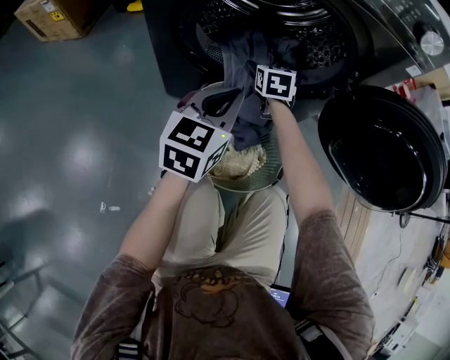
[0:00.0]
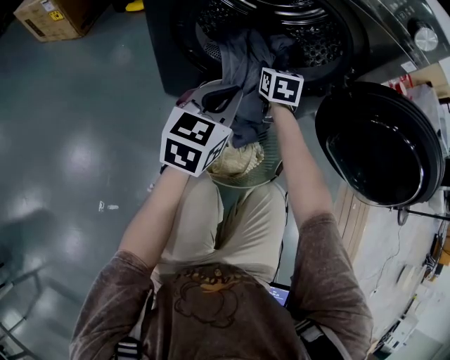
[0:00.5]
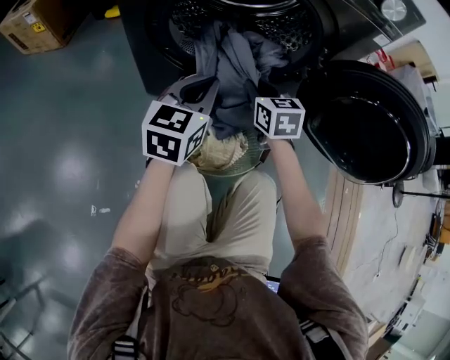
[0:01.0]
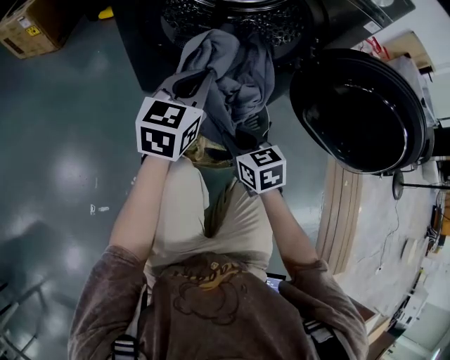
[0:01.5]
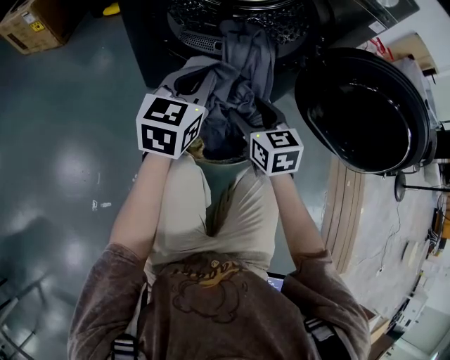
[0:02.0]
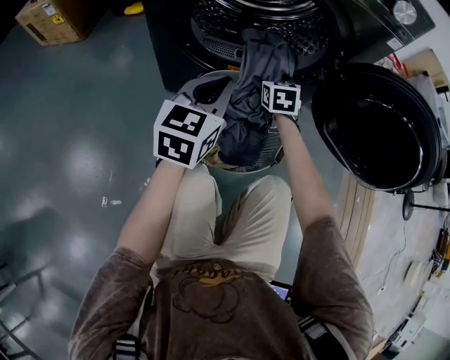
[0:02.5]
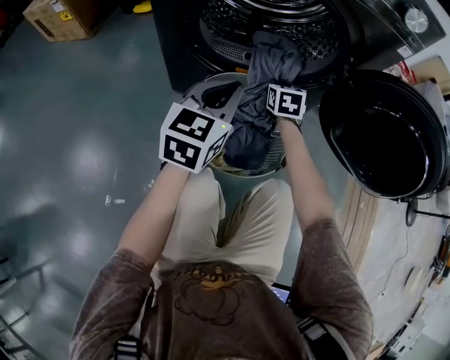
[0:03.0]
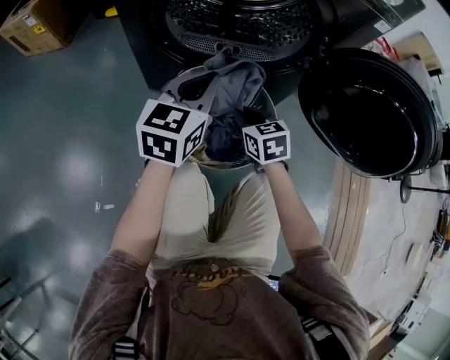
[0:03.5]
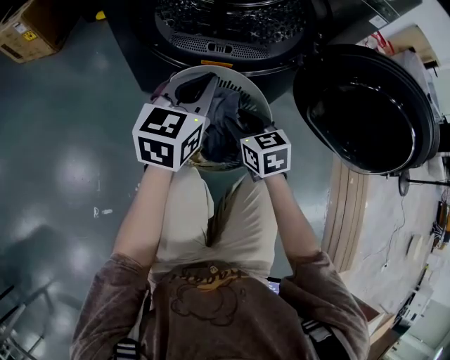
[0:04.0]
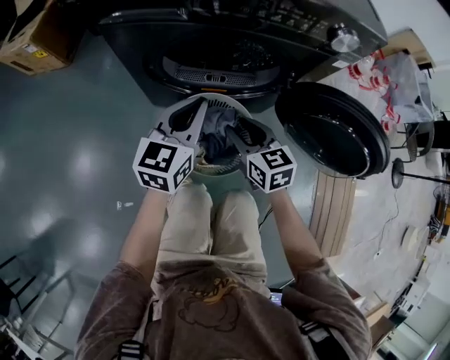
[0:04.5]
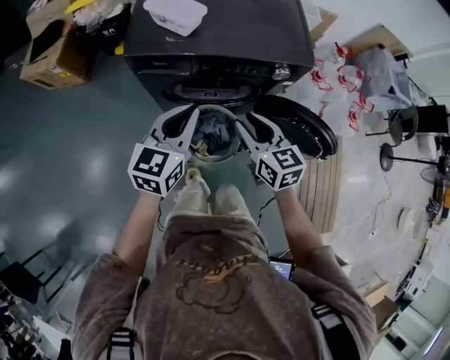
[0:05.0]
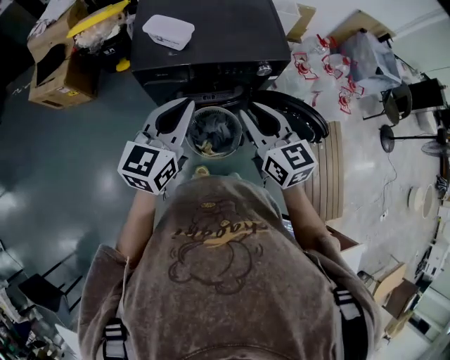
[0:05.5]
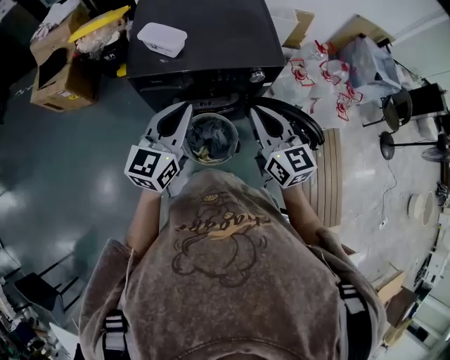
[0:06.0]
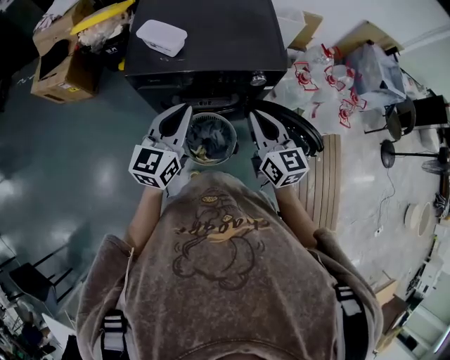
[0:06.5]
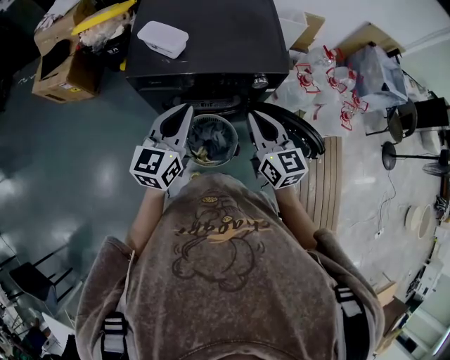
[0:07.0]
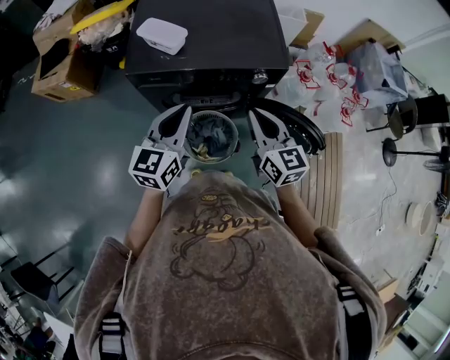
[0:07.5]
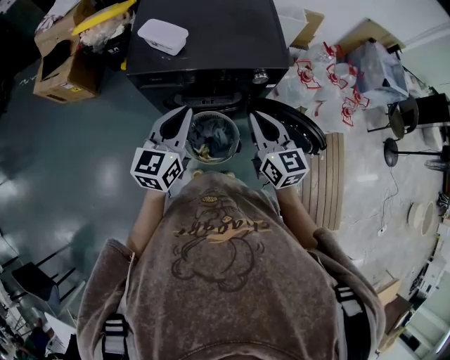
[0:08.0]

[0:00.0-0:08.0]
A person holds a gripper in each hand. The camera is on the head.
0:00.0 to 0:02.0: The right gripper shifts about 25 cm backward, and closes, then reopens.
0:02.0 to 0:04.0: The right gripper travels downward by approximately 5 cm, and travels forward and back again, approximately 15 cm each way.
0:04.0 to 0:06.0: The two grippers go roughly 60 cm upward. The right gripper turns by approximately 30 degrees, and closes up.
0:06.0 to 0:08.0: The right gripper travels downward by approximately 5 cm.

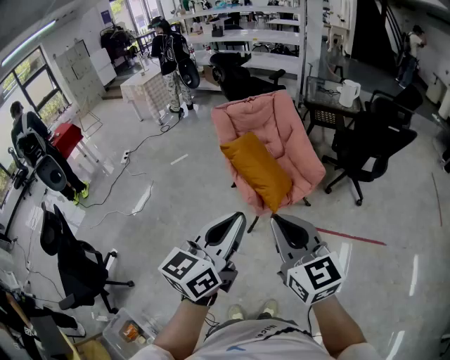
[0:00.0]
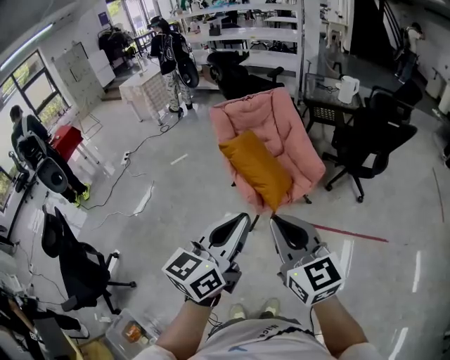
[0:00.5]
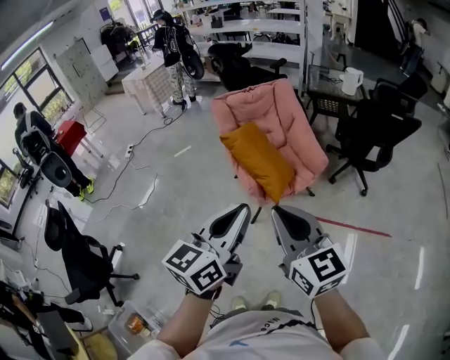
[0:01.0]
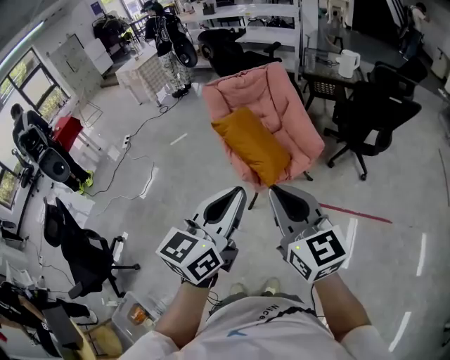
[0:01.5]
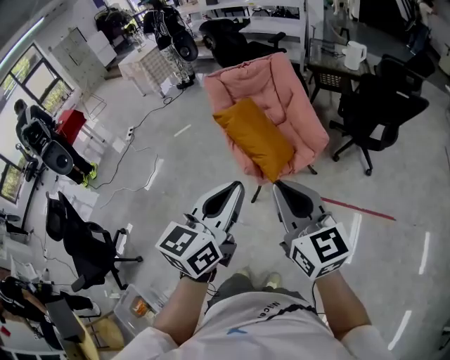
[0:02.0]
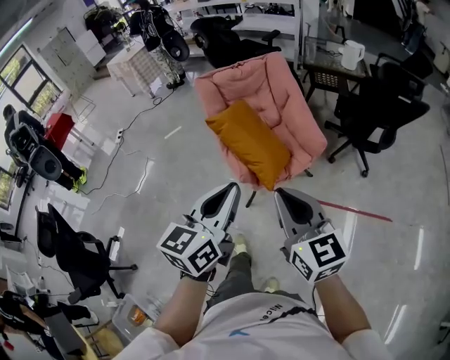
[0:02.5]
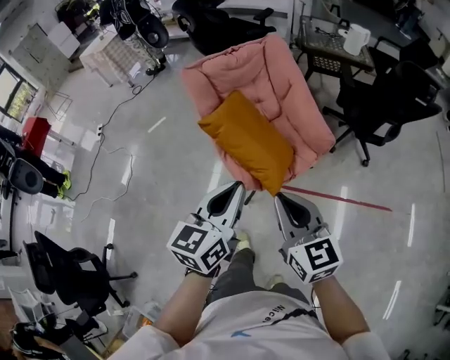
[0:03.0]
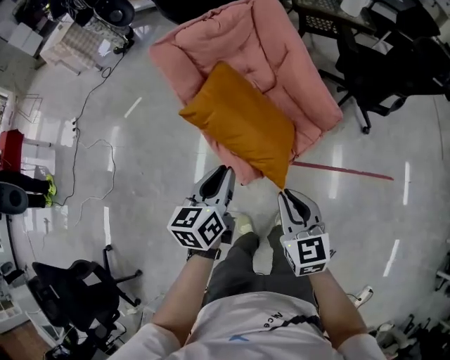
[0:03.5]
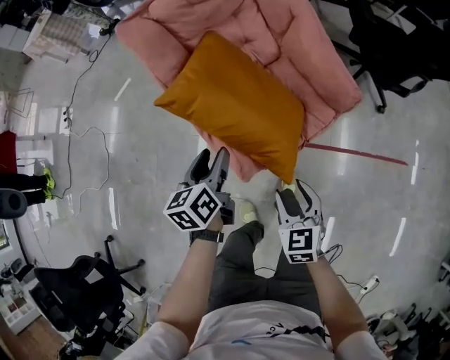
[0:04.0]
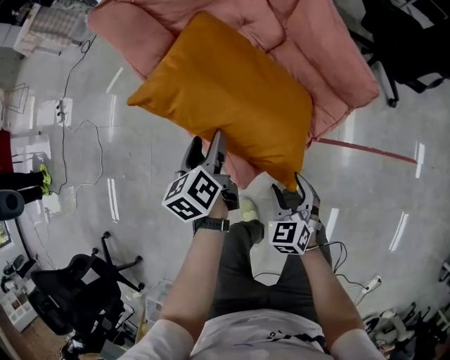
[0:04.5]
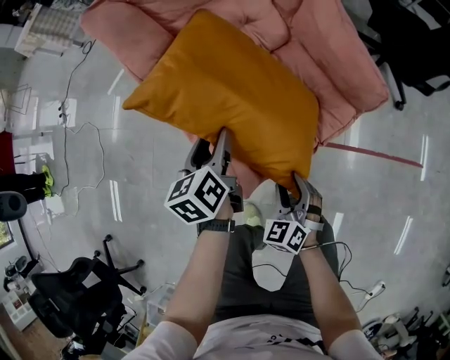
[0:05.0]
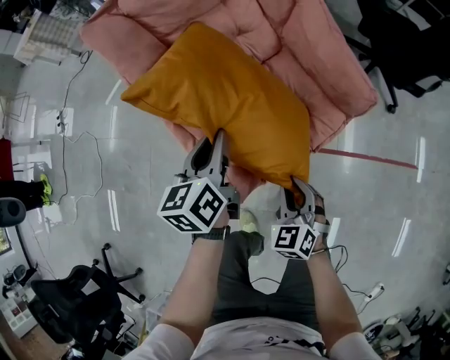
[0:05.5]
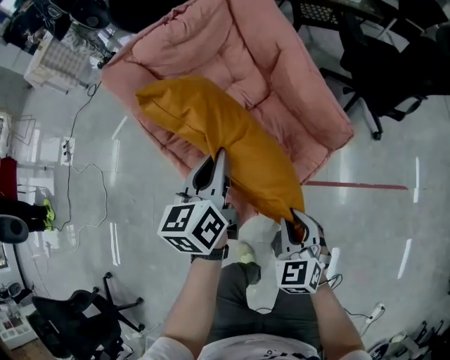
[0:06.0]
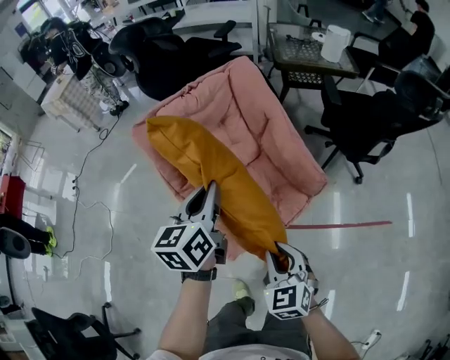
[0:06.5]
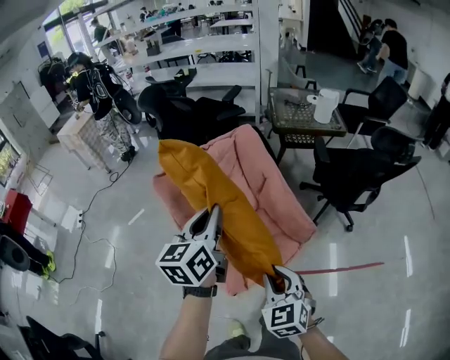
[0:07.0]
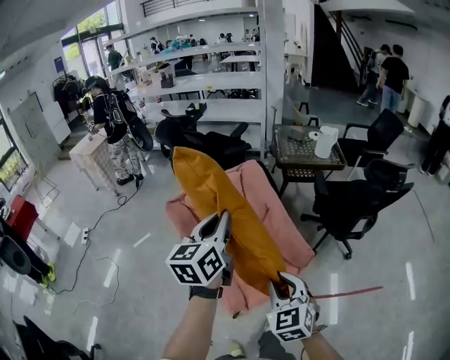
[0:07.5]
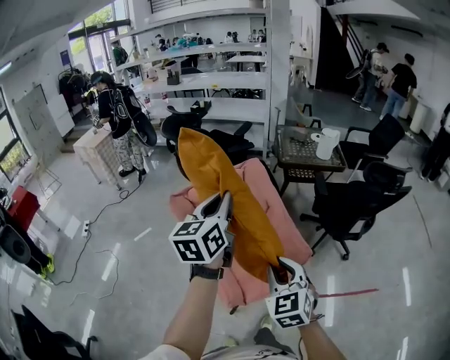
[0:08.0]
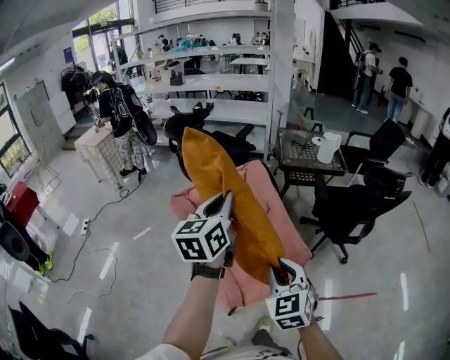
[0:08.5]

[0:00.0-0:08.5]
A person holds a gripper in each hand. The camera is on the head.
0:00.0 to 0:02.0: Both grippers move to the right, approximately 10 cm.
0:02.0 to 0:04.0: The two grippers go some 60 cm downward and forward. The left gripper swivels about 40 degrees, and opens. Meanwhile the right gripper tips its fingers downward by approximately 40 degrees, and opens.
0:04.0 to 0:06.5: The left gripper travels upward and forward by approximately 25 cm, rotates approximately 20 degrees, and closes its fingers. The right gripper moves upward, approximately 15 cm, and closes.
0:06.5 to 0:08.5: The two grippers go approximately 30 cm upward.

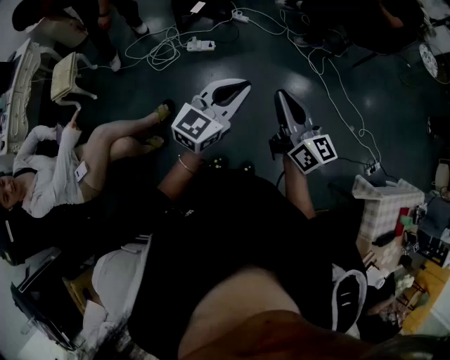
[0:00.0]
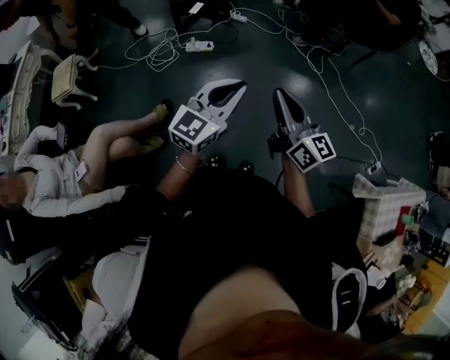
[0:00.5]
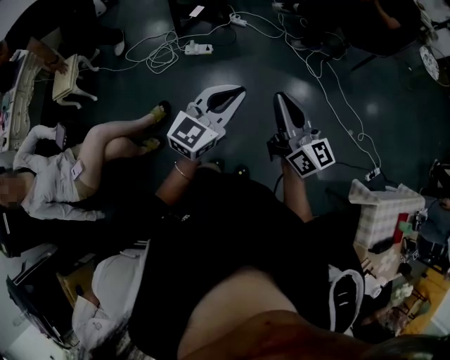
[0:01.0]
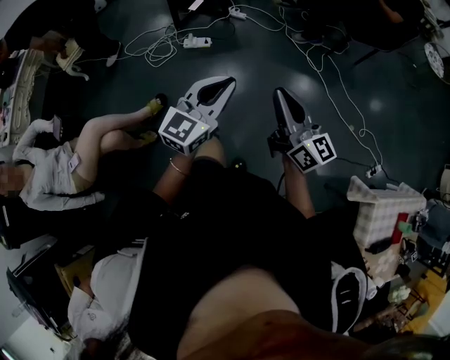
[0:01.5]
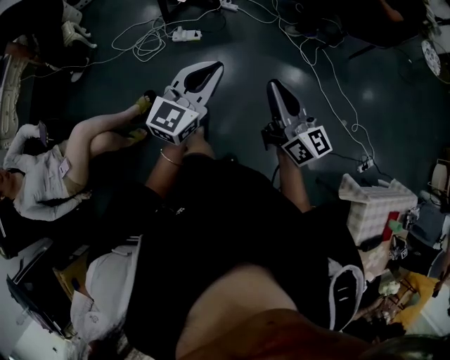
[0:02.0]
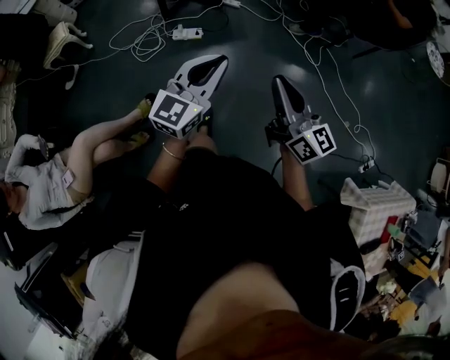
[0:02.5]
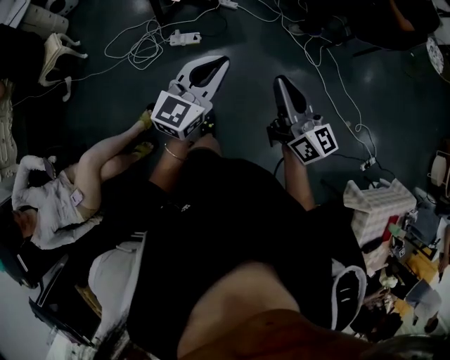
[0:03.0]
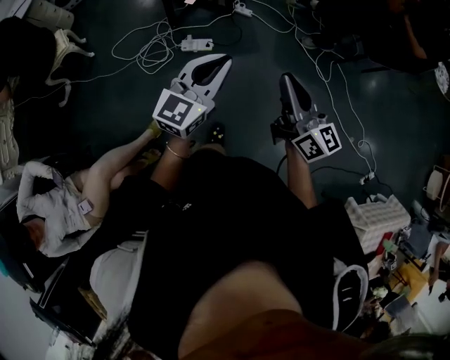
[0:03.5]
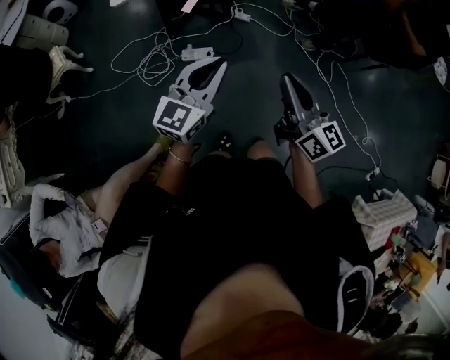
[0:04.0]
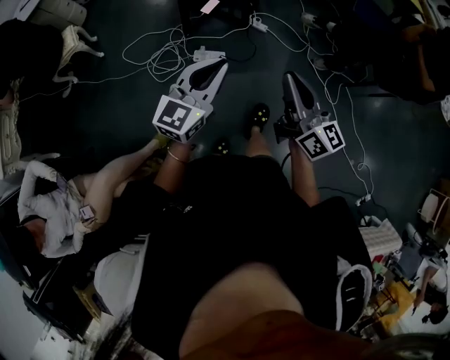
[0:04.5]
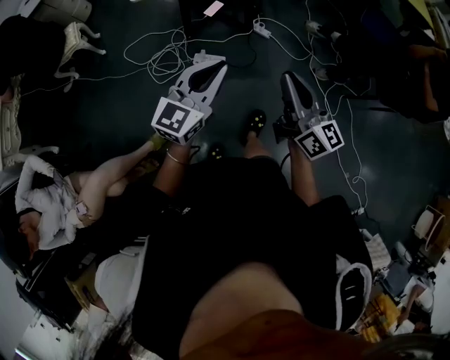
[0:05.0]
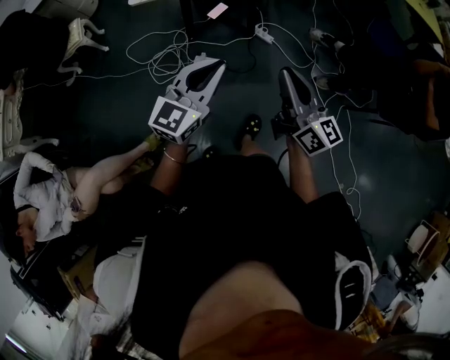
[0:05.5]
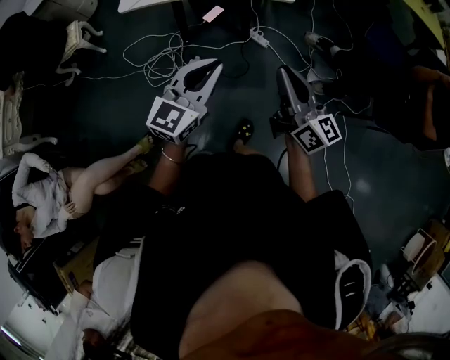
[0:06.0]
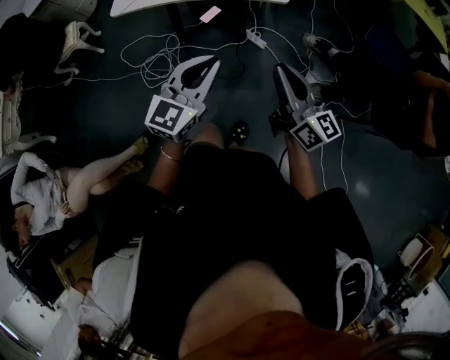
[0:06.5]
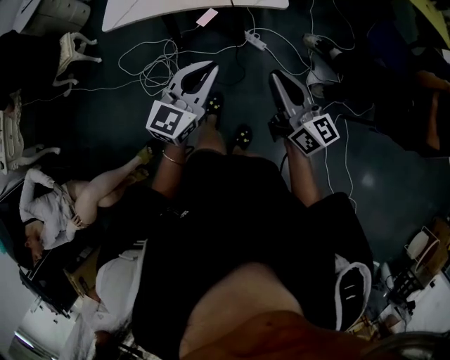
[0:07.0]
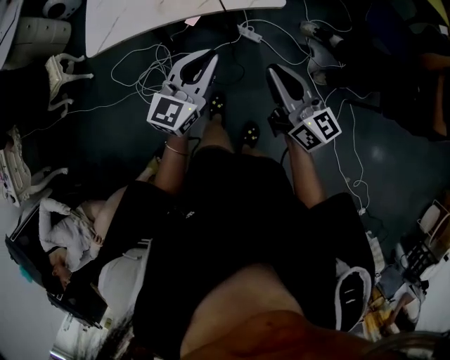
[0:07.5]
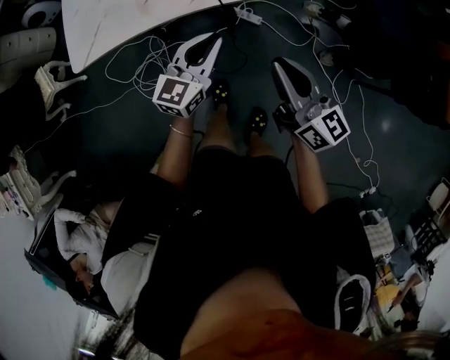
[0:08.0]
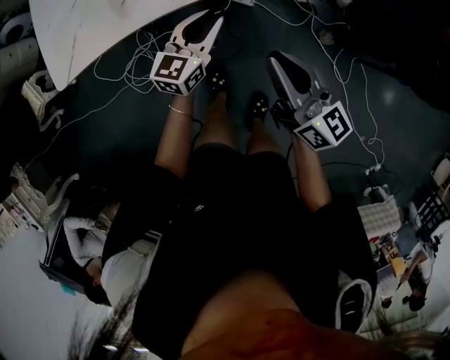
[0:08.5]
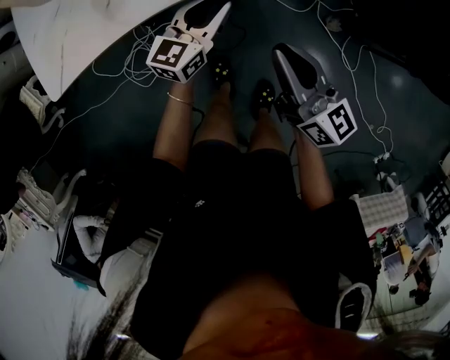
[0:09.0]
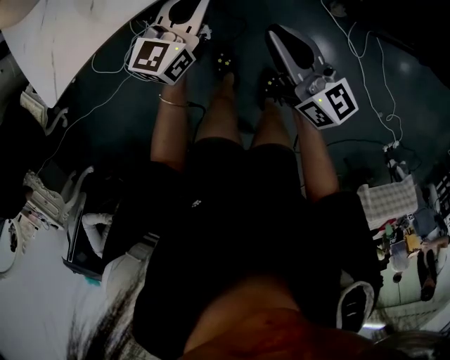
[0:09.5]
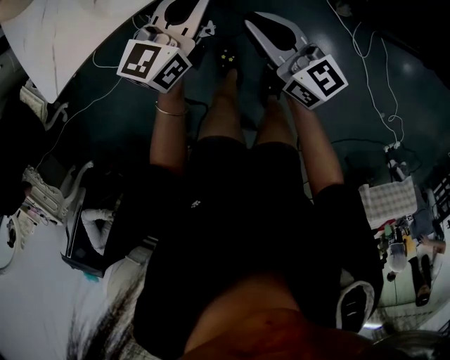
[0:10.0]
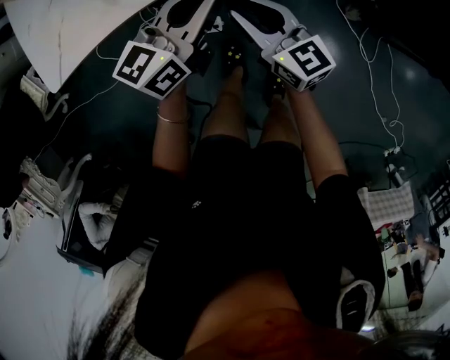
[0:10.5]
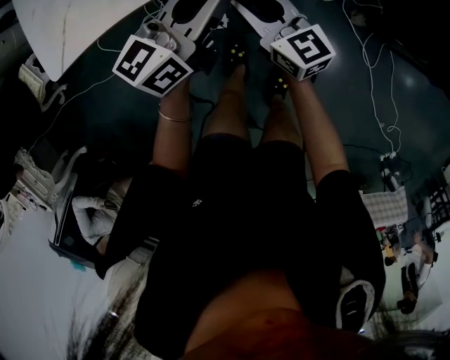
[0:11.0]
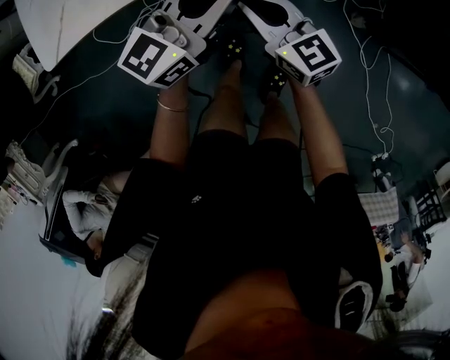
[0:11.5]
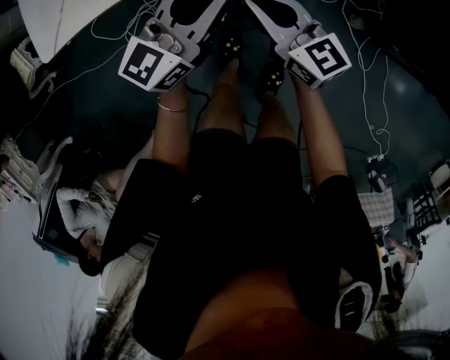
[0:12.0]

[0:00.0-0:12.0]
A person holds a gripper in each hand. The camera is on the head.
0:00.0 to 0:02.0: The left gripper is displaced forward by some 5 cm, while the right gripper is displaced to the right by about 10 cm.
0:02.0 to 0:04.0: The two grippers go roughly 35 cm forward and to the left.
0:04.0 to 0:06.0: Both grippers move forward and to the right, roughly 20 cm.
0:06.0 to 0:08.0: Both grippers move forward and downward, about 25 cm.
0:08.0 to 0:10.0: The left gripper shifts approximately 10 cm forward and downward, while the right gripper goes approximately 15 cm downward, to the left and forward.
0:10.0 to 0:12.0: The two grippers go approximately 5 cm to the left.
